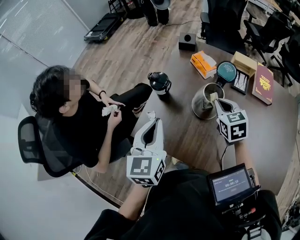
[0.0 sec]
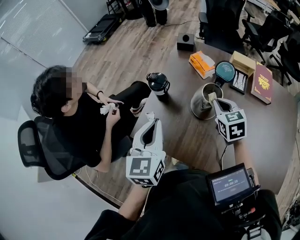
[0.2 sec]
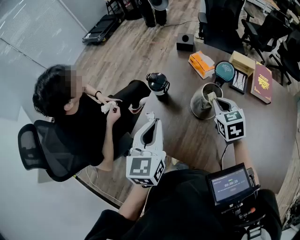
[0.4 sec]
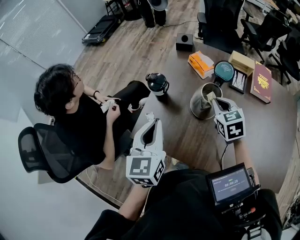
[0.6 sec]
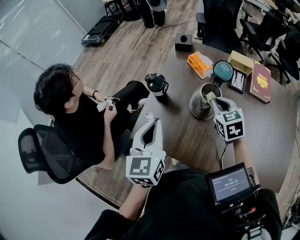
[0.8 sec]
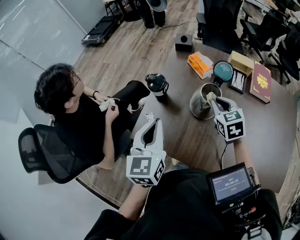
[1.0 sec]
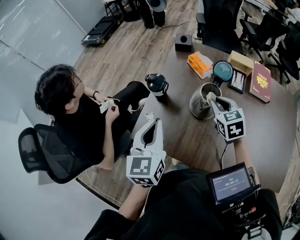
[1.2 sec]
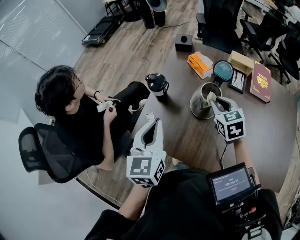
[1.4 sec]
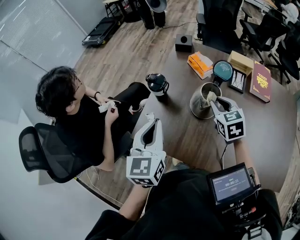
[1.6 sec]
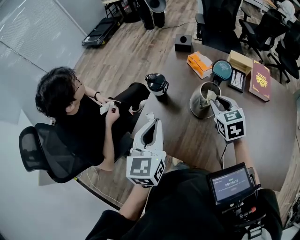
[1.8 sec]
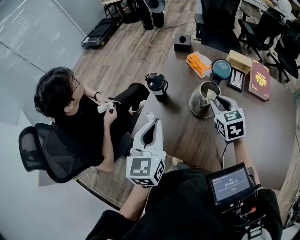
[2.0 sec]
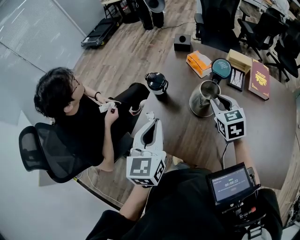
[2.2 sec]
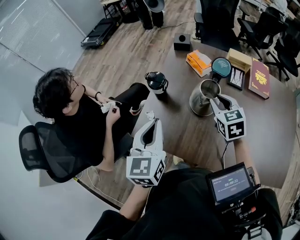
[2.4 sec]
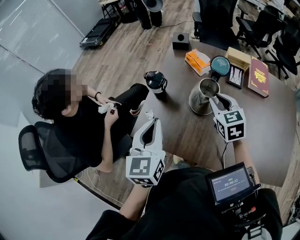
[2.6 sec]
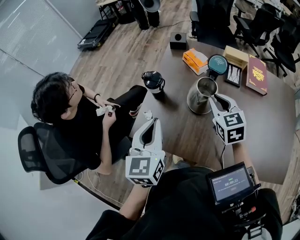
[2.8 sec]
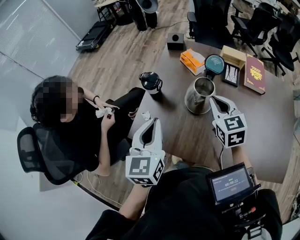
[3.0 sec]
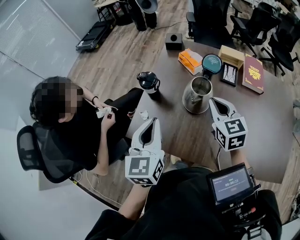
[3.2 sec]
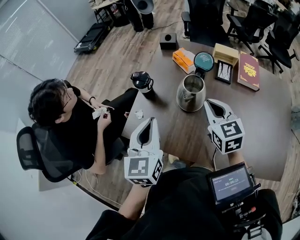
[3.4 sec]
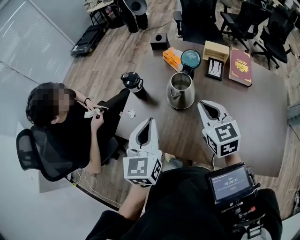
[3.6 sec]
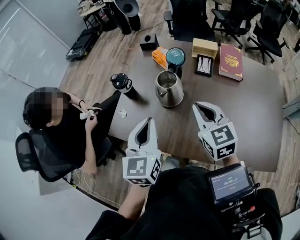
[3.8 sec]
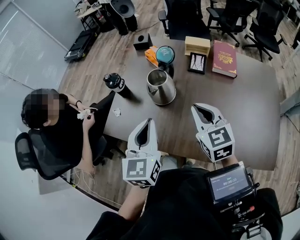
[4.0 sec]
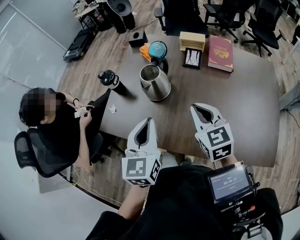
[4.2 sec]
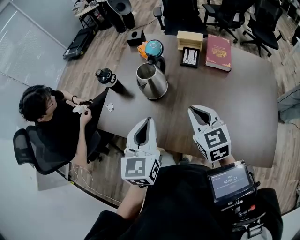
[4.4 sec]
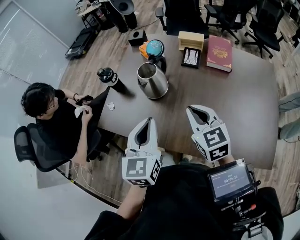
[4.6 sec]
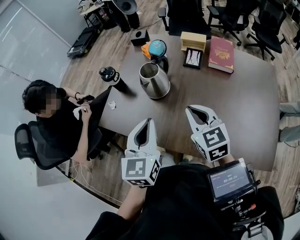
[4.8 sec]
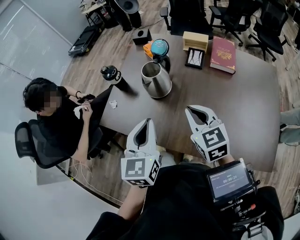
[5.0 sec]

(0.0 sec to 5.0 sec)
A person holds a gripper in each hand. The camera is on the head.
0.0 sec - 1.6 sec: The right gripper opens up.
1.6 sec - 3.4 sec: The left gripper ends up some 5 cm from where it was. The right gripper moves backward and upward, some 10 cm, and closes its fingers.
3.4 sec - 5.0 sec: The right gripper shifts roughly 15 cm backward and to the right, while the left gripper shifts about 20 cm to the right and backward.

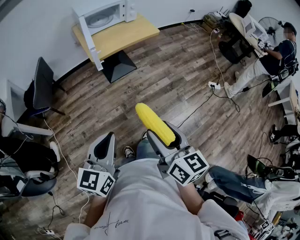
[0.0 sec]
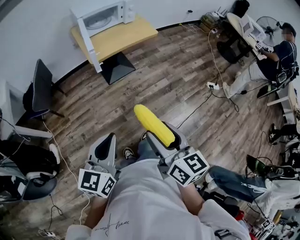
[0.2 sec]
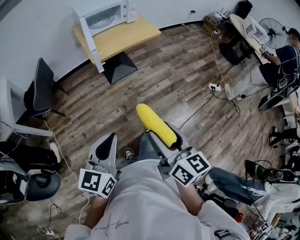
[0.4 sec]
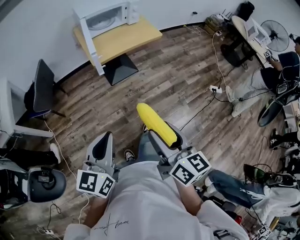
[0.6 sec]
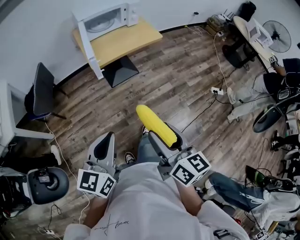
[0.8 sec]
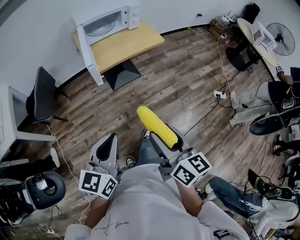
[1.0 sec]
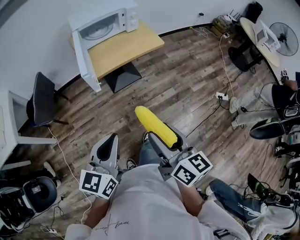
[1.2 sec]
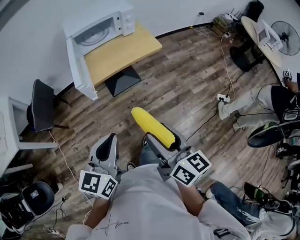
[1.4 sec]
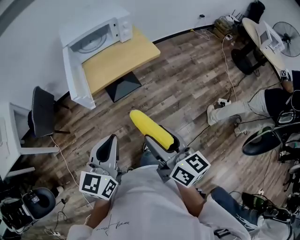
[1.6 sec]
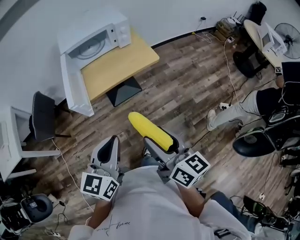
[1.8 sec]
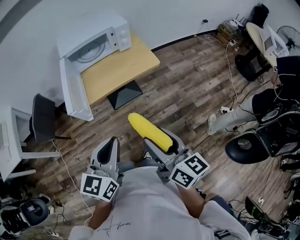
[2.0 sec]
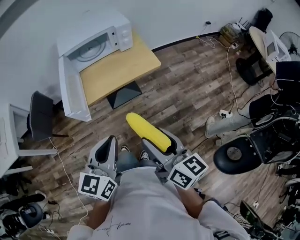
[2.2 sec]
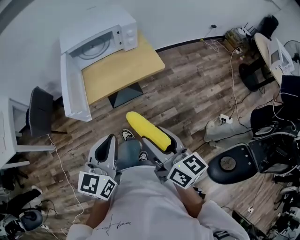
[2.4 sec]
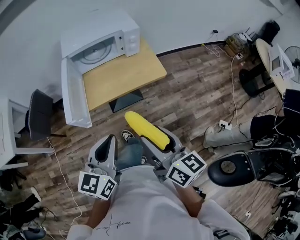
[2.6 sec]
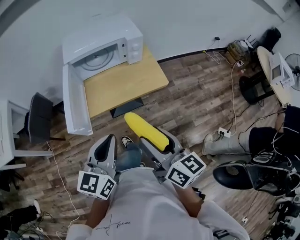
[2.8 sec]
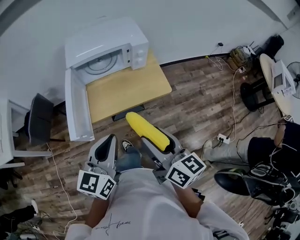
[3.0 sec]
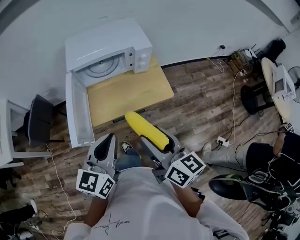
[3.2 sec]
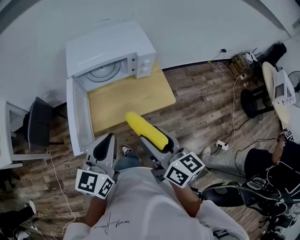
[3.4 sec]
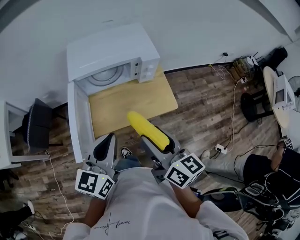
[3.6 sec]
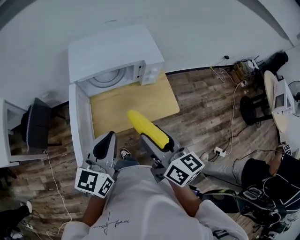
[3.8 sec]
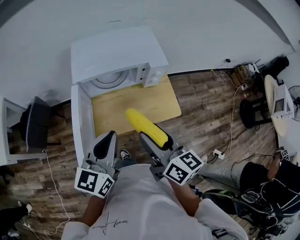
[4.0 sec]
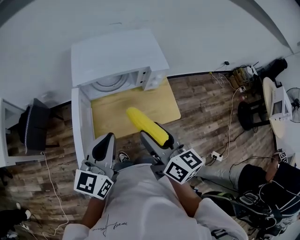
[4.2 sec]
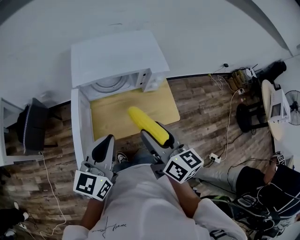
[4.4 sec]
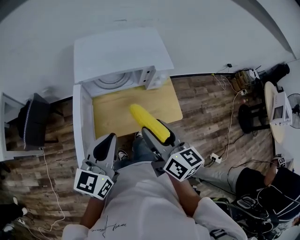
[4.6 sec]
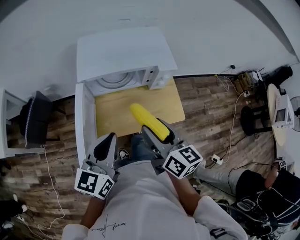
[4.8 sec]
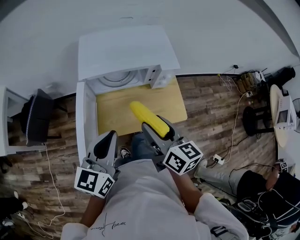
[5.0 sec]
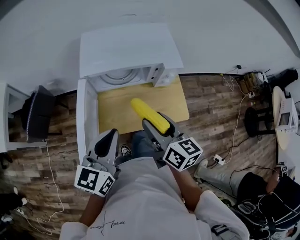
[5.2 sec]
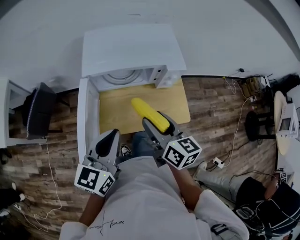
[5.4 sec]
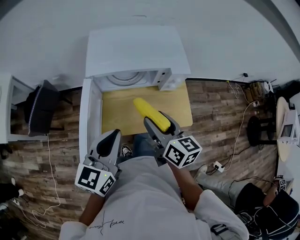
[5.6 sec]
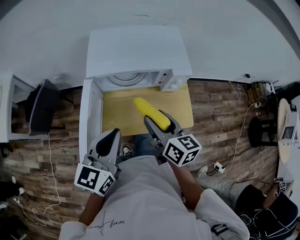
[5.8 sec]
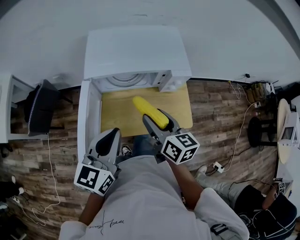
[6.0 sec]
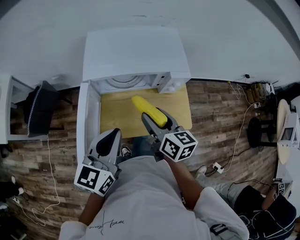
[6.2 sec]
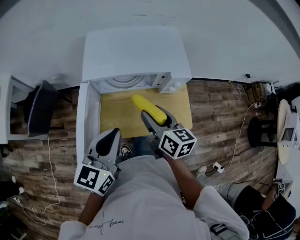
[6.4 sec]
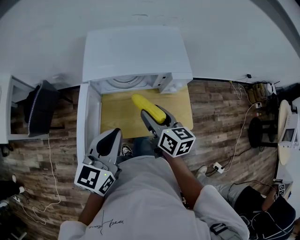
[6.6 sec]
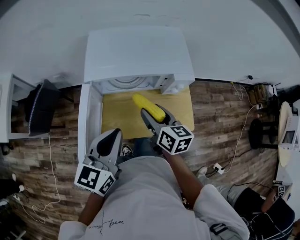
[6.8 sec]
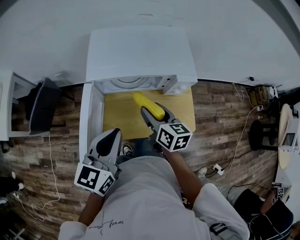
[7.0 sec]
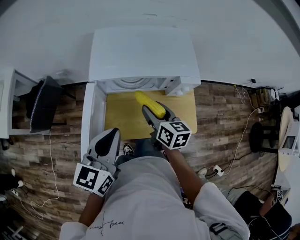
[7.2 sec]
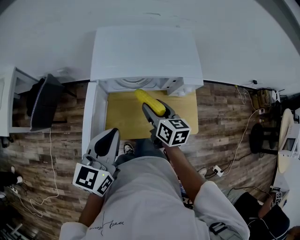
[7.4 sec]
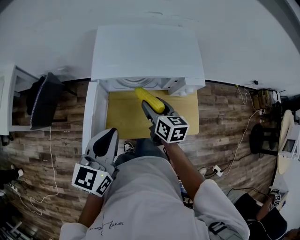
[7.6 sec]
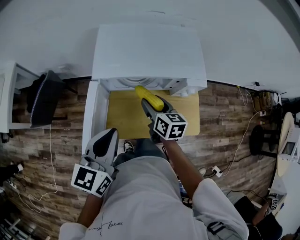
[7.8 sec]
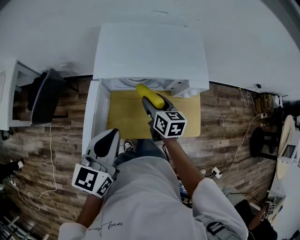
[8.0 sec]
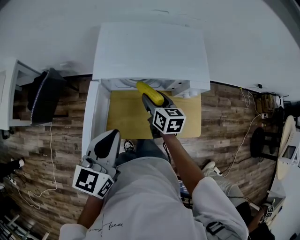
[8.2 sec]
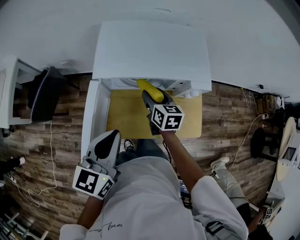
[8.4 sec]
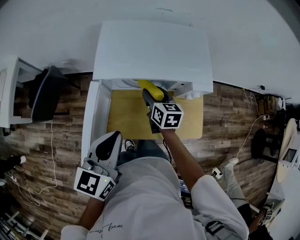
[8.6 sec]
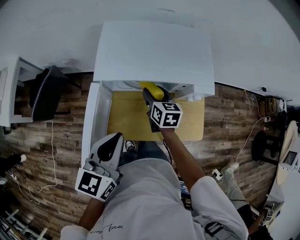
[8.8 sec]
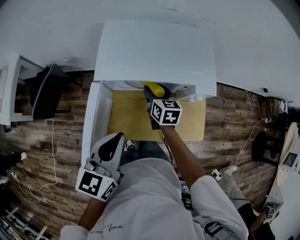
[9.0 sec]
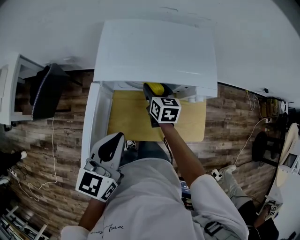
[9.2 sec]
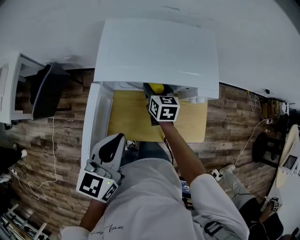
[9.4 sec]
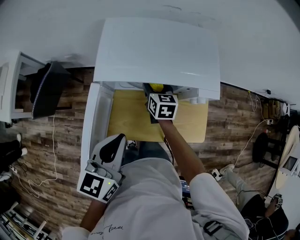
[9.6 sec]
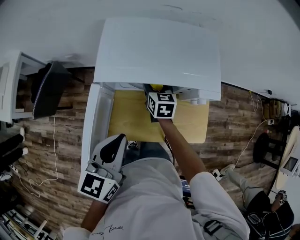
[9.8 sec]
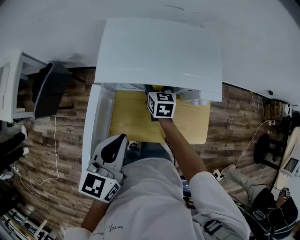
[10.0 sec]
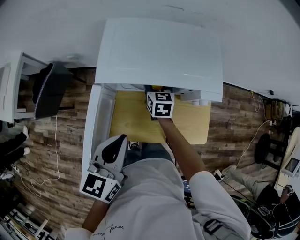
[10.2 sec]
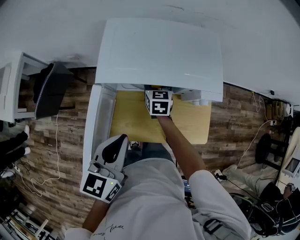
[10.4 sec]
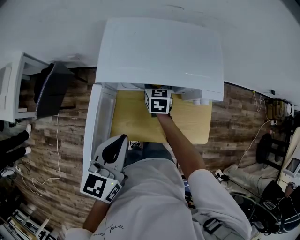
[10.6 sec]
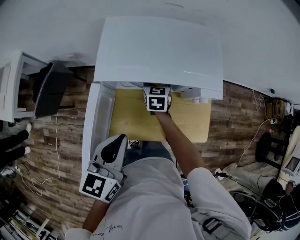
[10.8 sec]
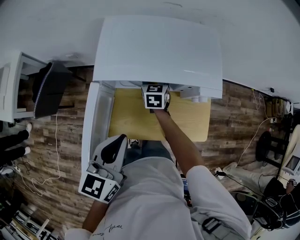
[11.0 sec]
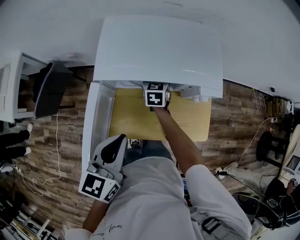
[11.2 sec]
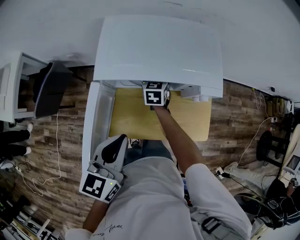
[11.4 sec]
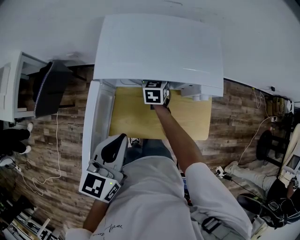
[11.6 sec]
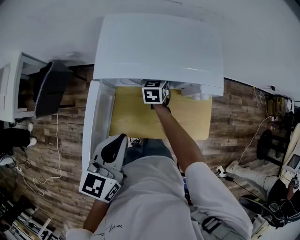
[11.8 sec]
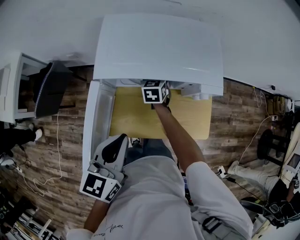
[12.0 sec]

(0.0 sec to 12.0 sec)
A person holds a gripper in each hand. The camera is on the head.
0.0 sec - 1.6 sec: The left gripper moves forward and to the right, approximately 30 cm; the right gripper heads forward, covering approximately 25 cm.
1.6 sec - 3.0 sec: Both grippers move forward, approximately 25 cm.
3.0 sec - 4.4 sec: Both grippers travel together forward, some 20 cm.
4.4 sec - 6.0 sec: The right gripper goes about 10 cm forward and downward.
6.0 sec - 7.6 sec: The left gripper ends up about 5 cm from where it was; the right gripper is displaced forward and downward by some 15 cm.
7.6 sec - 9.0 sec: The right gripper goes approximately 10 cm forward and downward.
9.0 sec - 10.4 sec: The right gripper goes roughly 5 cm forward.
10.4 sec - 12.0 sec: There are only small adjustments of the grippers.

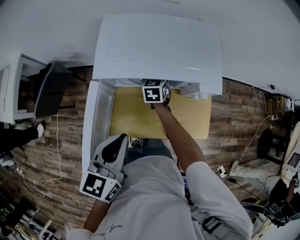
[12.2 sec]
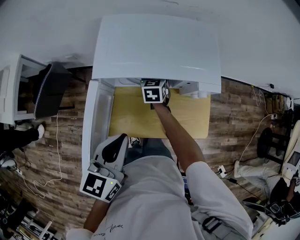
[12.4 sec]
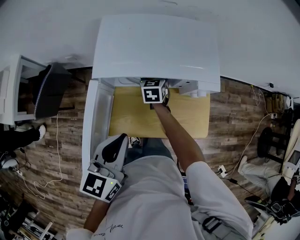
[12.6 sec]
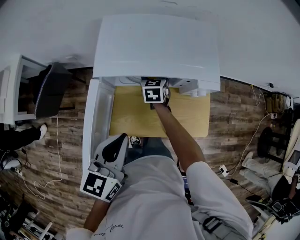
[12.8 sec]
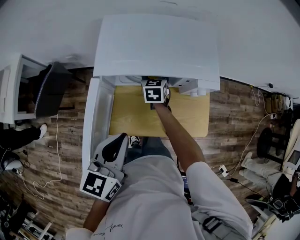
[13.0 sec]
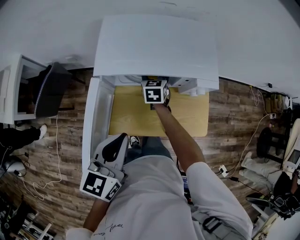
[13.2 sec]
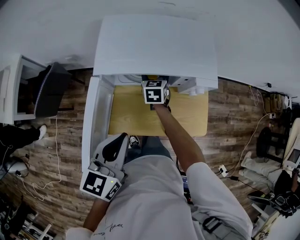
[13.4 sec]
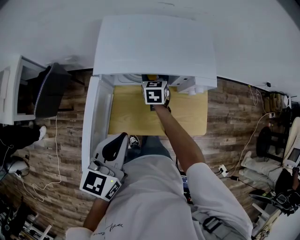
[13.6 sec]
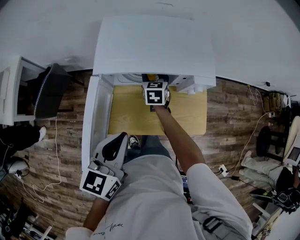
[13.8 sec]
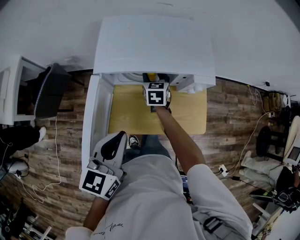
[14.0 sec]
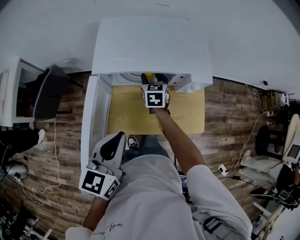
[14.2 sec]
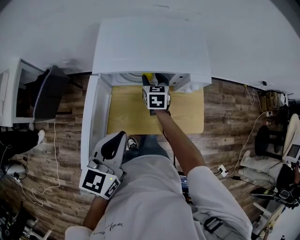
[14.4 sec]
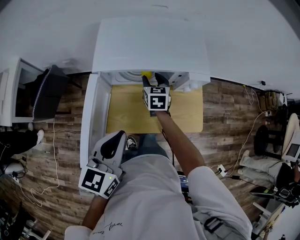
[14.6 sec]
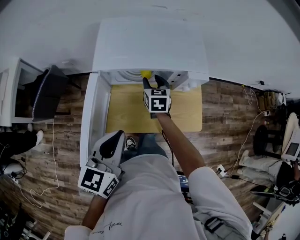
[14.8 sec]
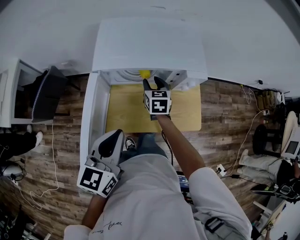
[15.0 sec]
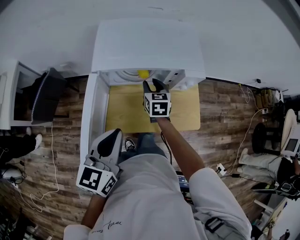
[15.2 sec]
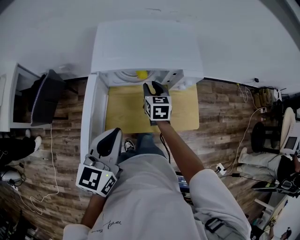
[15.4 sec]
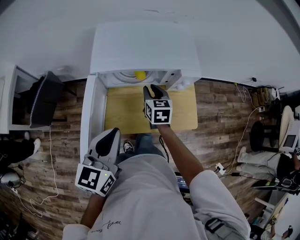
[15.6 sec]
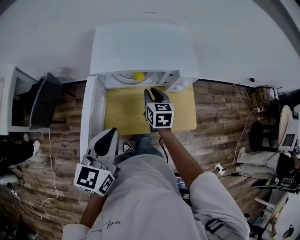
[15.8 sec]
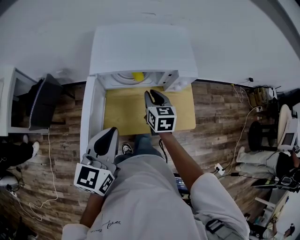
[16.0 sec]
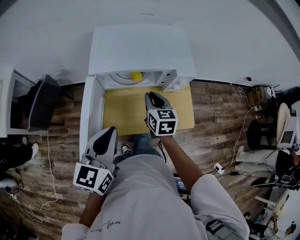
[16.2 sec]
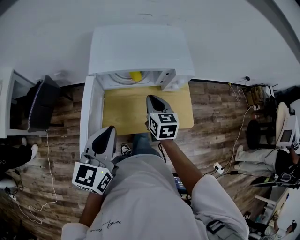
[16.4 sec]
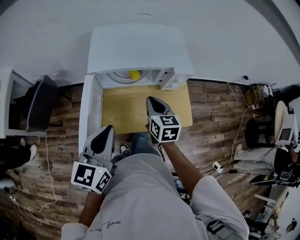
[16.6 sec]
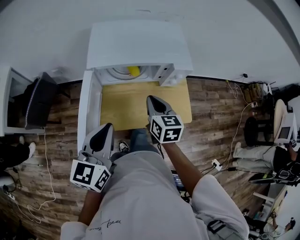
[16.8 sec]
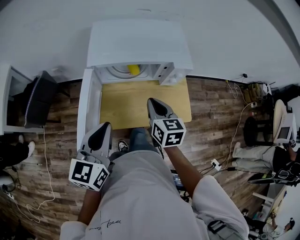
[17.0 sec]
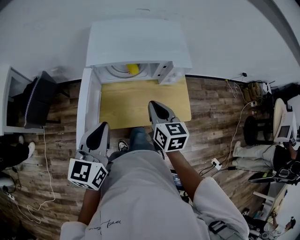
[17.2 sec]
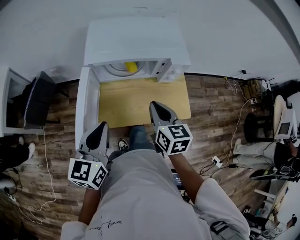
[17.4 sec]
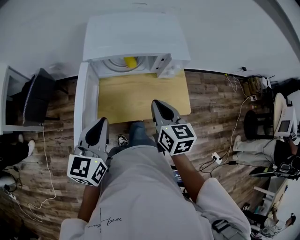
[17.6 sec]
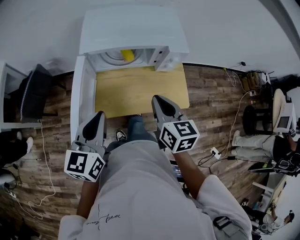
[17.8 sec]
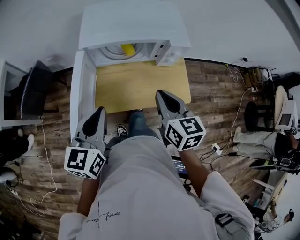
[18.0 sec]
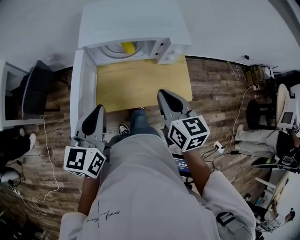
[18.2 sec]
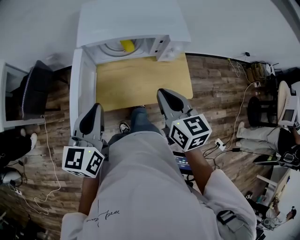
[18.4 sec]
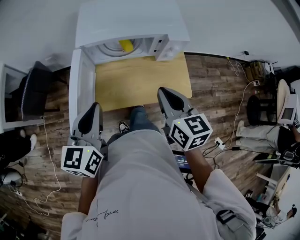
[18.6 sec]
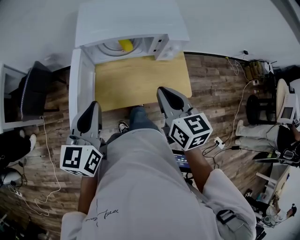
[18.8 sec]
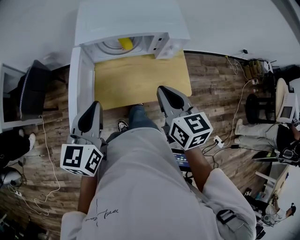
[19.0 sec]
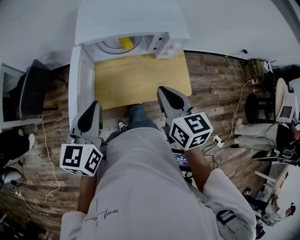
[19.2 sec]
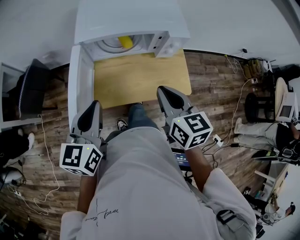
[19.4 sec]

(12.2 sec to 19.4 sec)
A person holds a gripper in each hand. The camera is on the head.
12.2 sec - 13.6 sec: The grippers move only a little.
13.6 sec - 15.0 sec: The right gripper heads backward, covering roughly 5 cm.
15.0 sec - 16.6 sec: The right gripper goes approximately 15 cm backward and upward, and closes.
16.6 sec - 18.0 sec: The right gripper travels backward and upward by some 10 cm.
18.0 sec - 19.4 sec: The grippers move only a little.
